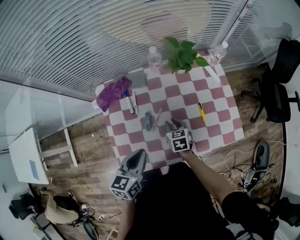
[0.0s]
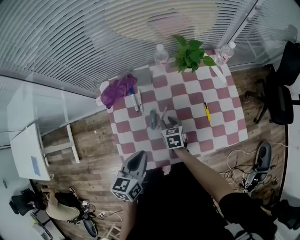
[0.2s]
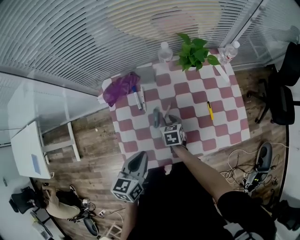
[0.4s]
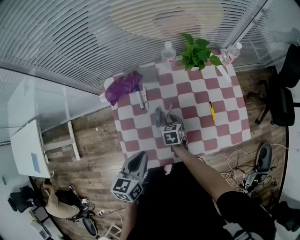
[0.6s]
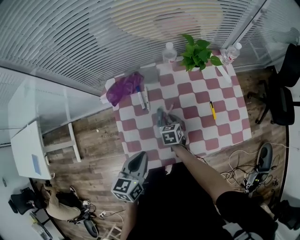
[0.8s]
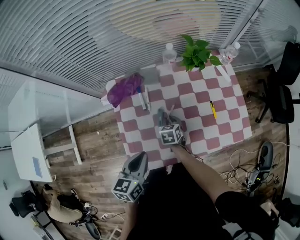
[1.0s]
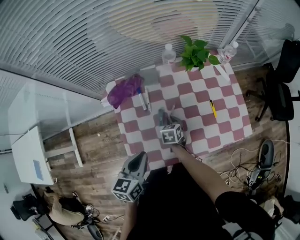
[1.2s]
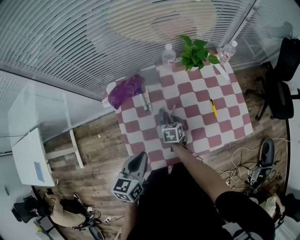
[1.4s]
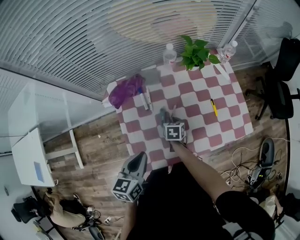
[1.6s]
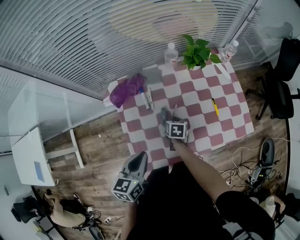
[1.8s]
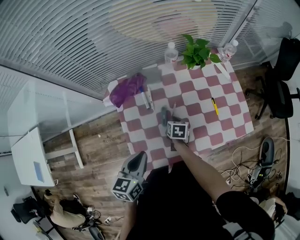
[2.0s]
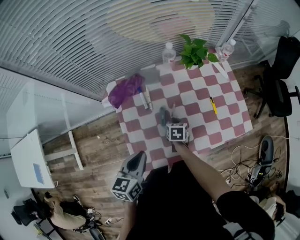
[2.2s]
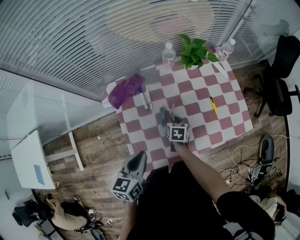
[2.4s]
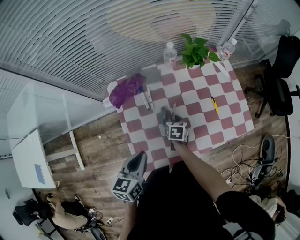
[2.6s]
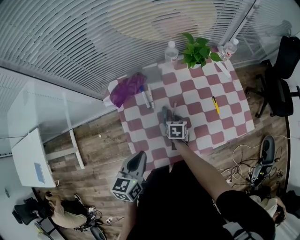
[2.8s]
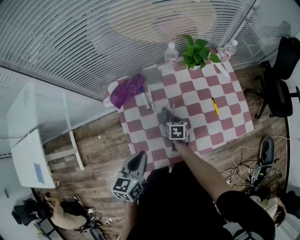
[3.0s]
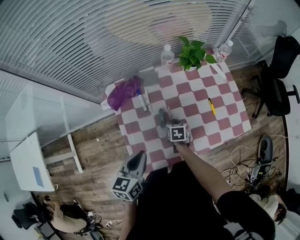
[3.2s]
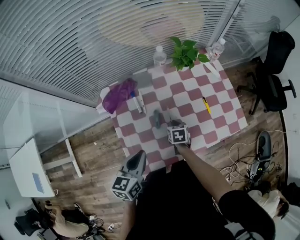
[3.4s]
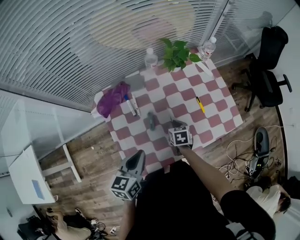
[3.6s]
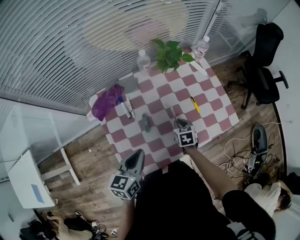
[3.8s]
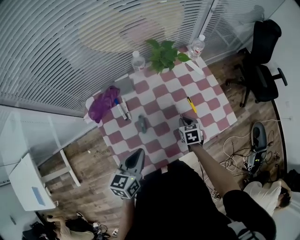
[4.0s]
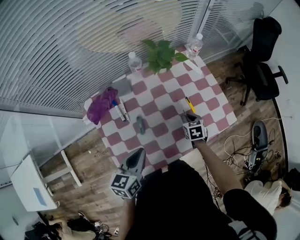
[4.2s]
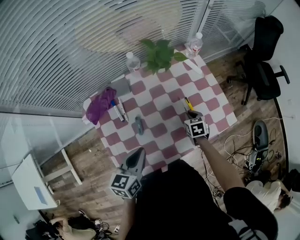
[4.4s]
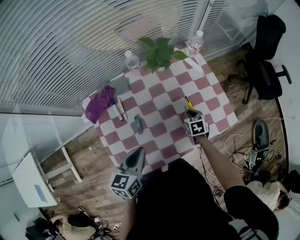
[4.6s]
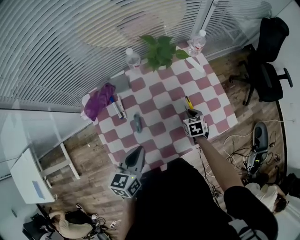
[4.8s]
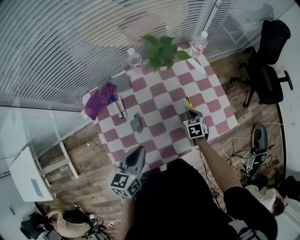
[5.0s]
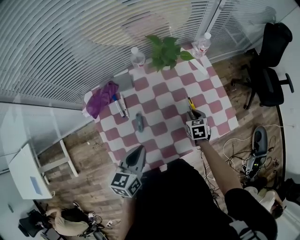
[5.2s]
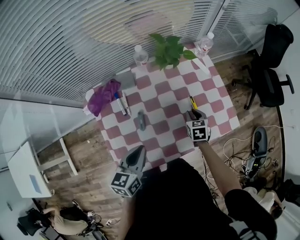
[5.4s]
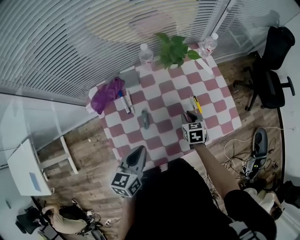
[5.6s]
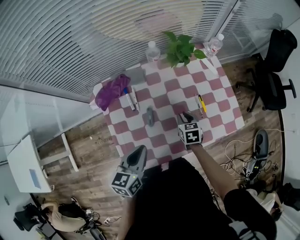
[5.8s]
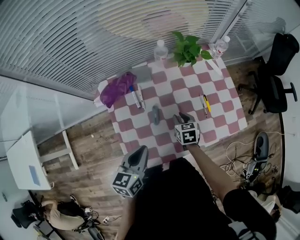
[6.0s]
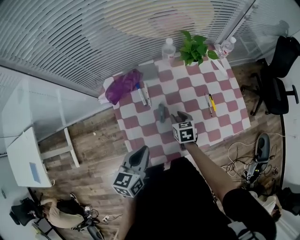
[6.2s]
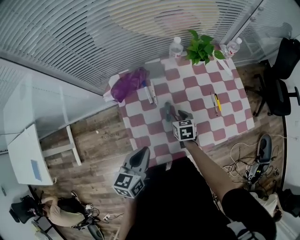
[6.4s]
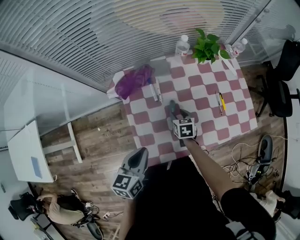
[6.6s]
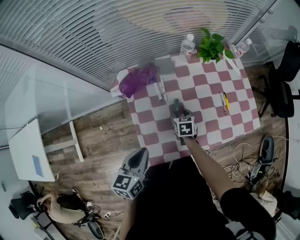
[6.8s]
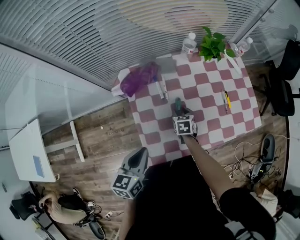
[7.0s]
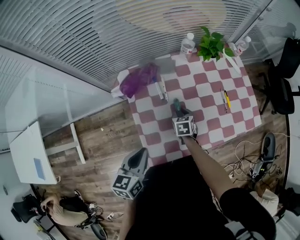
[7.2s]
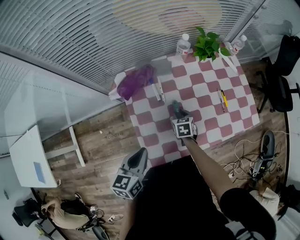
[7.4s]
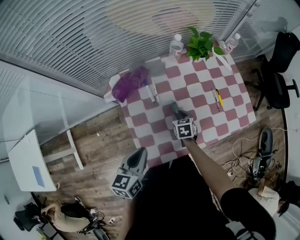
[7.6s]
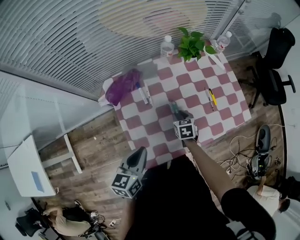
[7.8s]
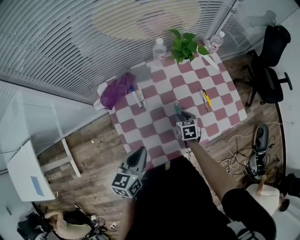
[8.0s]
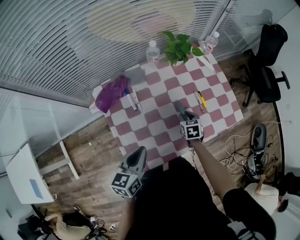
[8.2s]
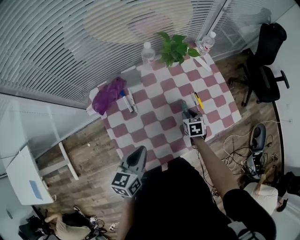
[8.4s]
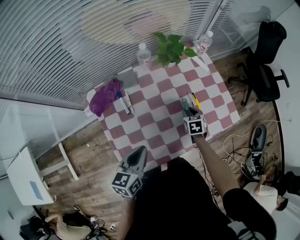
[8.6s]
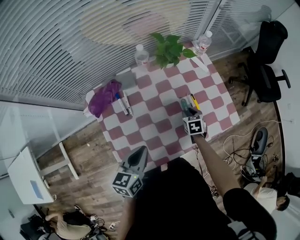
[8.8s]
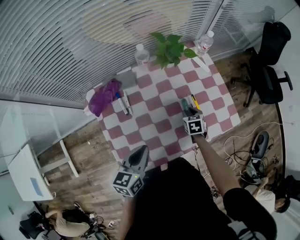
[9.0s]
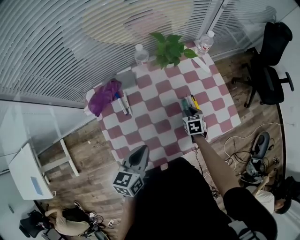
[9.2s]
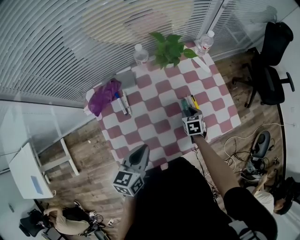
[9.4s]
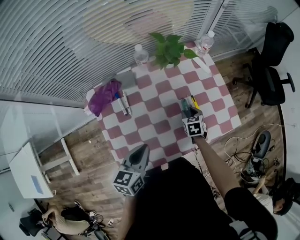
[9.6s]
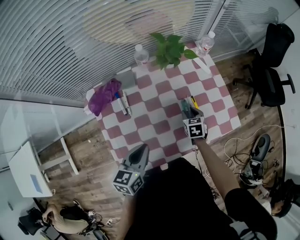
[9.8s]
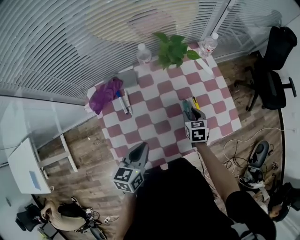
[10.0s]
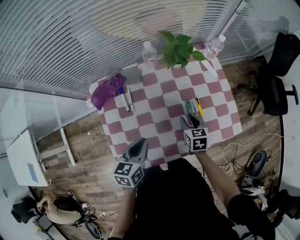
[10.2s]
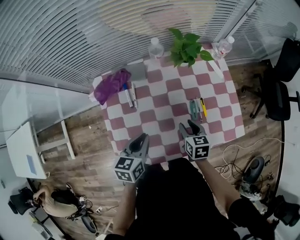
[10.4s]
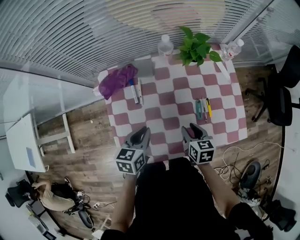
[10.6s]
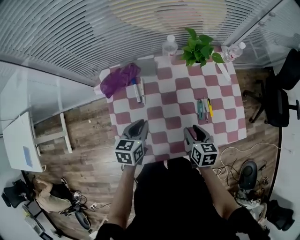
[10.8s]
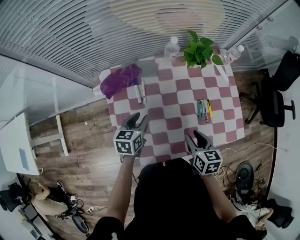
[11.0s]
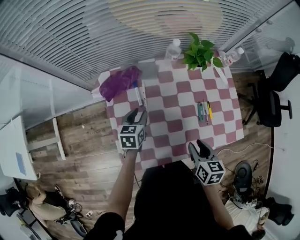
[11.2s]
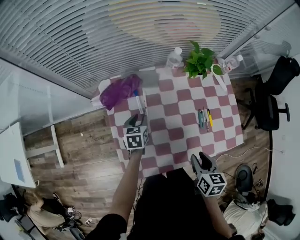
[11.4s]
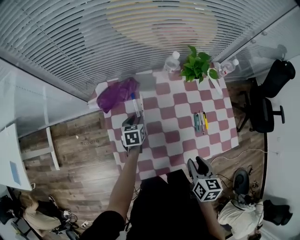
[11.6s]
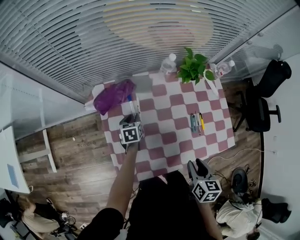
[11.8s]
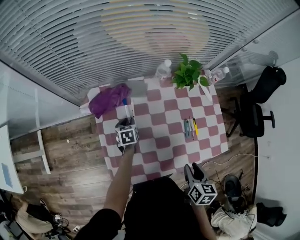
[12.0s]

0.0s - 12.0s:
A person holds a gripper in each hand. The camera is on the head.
0.0s - 1.6s: Both grippers move to the left, roughly 10 cm.
1.6s - 3.0s: There are only small adjustments of the grippers.
3.0s - 4.4s: The left gripper shifts some 15 cm to the right and forward. Meanwhile the right gripper is displaced to the right by some 20 cm.
4.4s - 6.0s: The right gripper is displaced to the left by about 15 cm. Meanwhile the left gripper goes about 5 cm to the left.
6.0s - 7.6s: The grippers both shift to the left by roughly 10 cm.
7.6s - 9.0s: Both grippers move to the right and forward, about 20 cm.
9.0s - 10.4s: The left gripper changes place by some 5 cm; the right gripper travels upward, backward and to the left by some 10 cm.
10.4s - 12.0s: The left gripper goes about 25 cm downward, forward and to the left, and opens up. The right gripper heads backward and upward, covering some 15 cm.

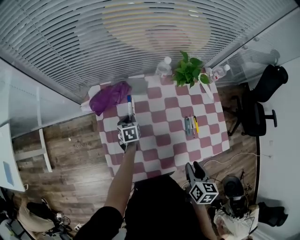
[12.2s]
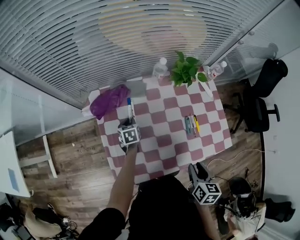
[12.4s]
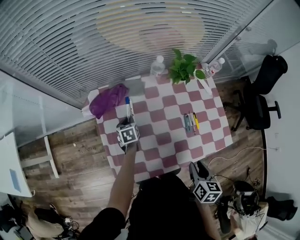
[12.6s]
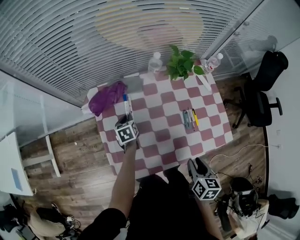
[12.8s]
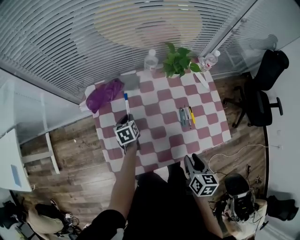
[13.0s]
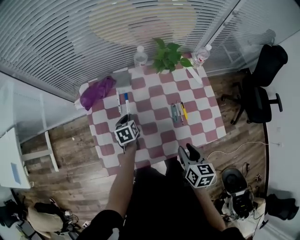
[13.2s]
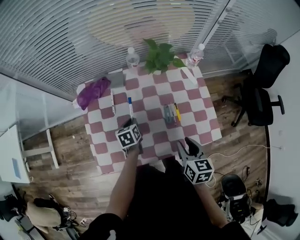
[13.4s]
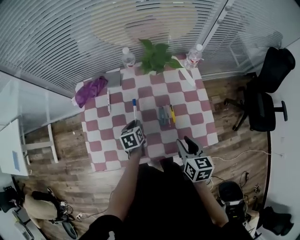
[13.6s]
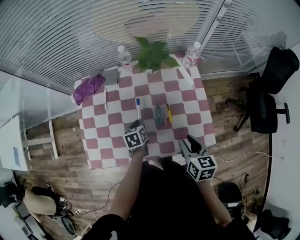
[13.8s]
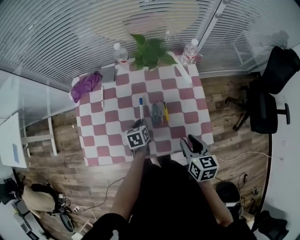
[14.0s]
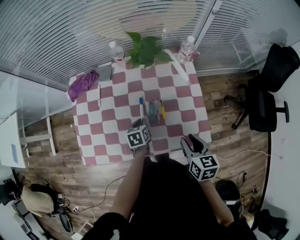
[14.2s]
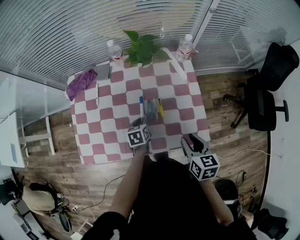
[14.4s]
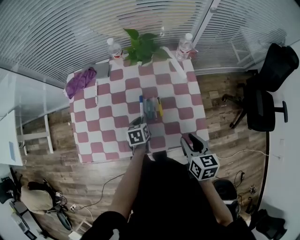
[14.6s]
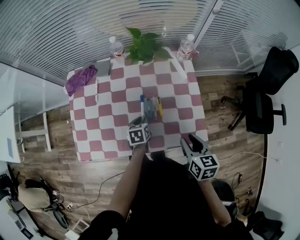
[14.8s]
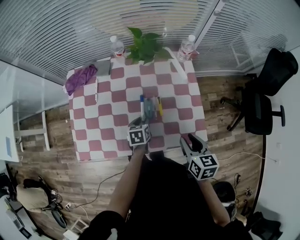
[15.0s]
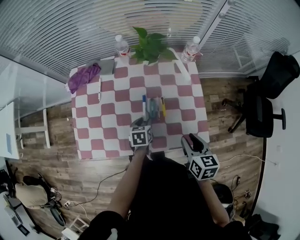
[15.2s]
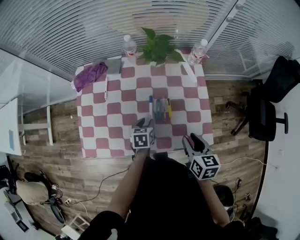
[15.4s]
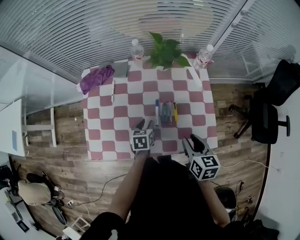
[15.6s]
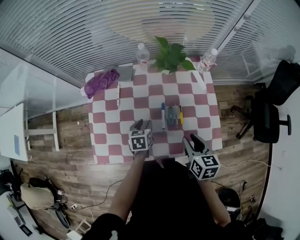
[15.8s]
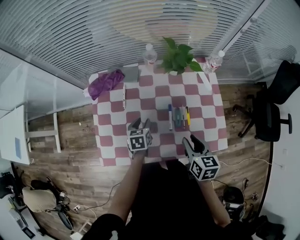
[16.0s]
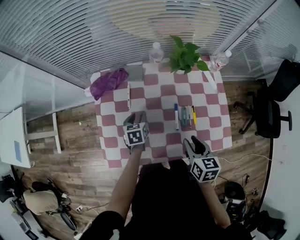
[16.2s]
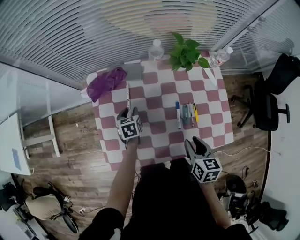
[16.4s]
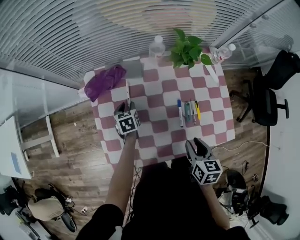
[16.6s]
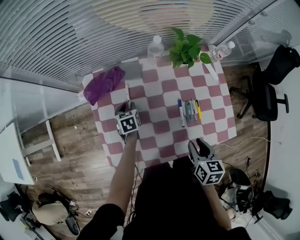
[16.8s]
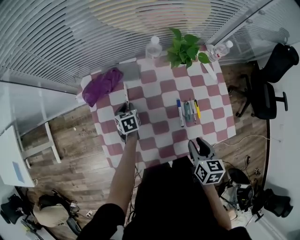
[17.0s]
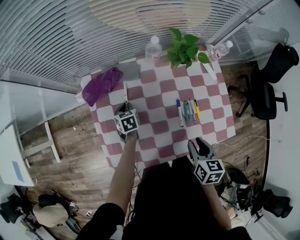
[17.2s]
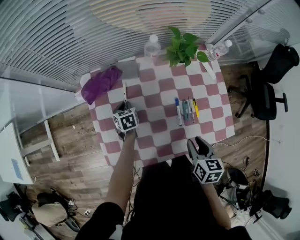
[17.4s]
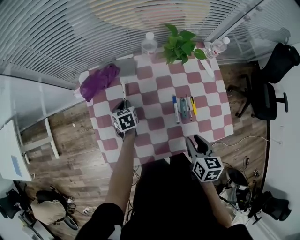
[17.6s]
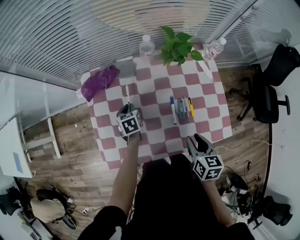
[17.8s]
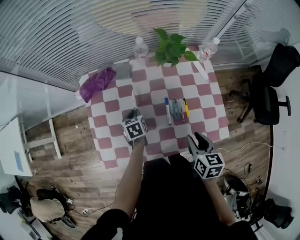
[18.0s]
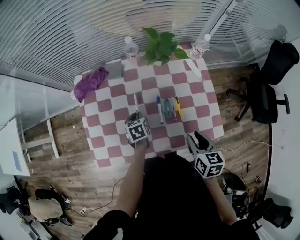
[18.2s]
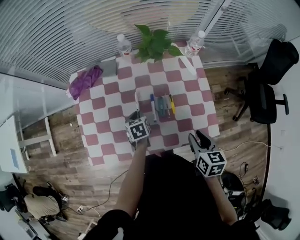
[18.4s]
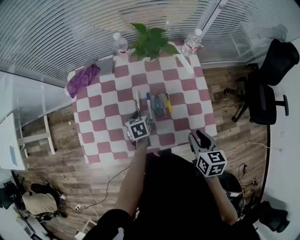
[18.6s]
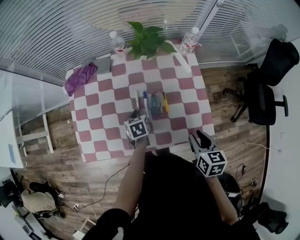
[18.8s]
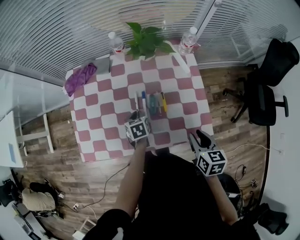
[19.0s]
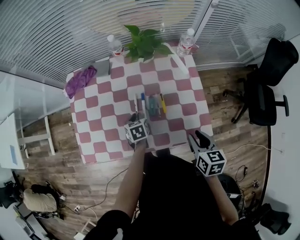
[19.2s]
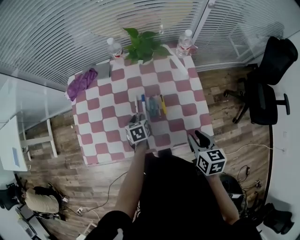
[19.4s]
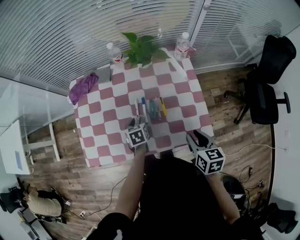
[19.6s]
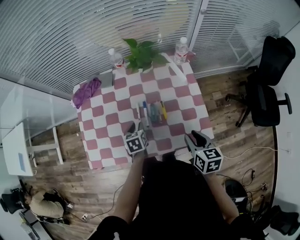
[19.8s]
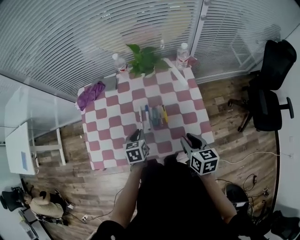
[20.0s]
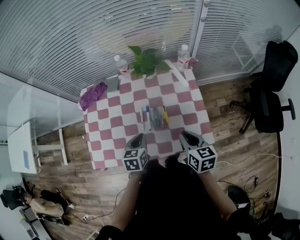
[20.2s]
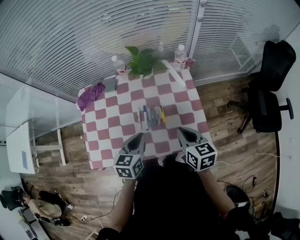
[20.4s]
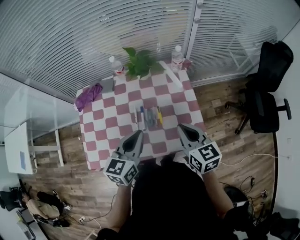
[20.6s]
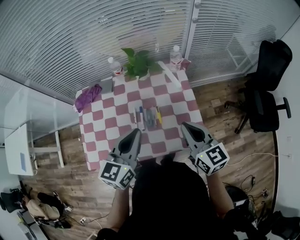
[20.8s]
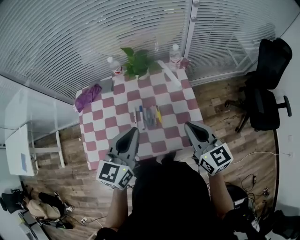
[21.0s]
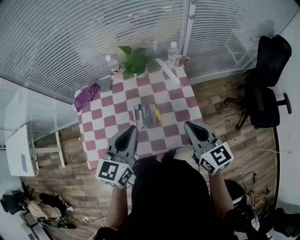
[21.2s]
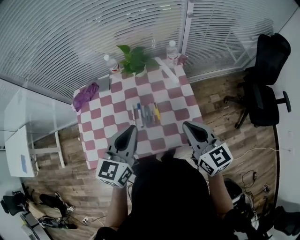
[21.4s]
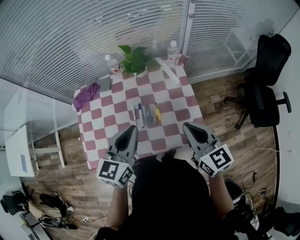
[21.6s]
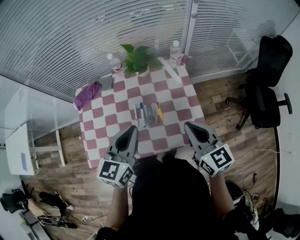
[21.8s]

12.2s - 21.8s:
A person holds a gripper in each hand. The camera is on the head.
12.2s - 13.8s: The left gripper travels to the right and backward by roughly 25 cm, while the right gripper moves to the right, approximately 20 cm, and changes its angle by roughly 20 degrees.
13.8s - 15.4s: The left gripper is displaced to the right by approximately 5 cm.
15.4s - 17.0s: The right gripper goes approximately 15 cm to the left. The left gripper goes some 30 cm to the left and forward.
17.0s - 18.6s: The left gripper is displaced to the right and backward by approximately 25 cm. Meanwhile the right gripper heads to the right, covering approximately 20 cm.
18.6s - 20.2s: The right gripper closes up. Meanwhile the left gripper travels upward and backward by roughly 15 cm.
20.2s - 21.8s: The left gripper moves upward, roughly 20 cm, and changes its angle by some 30 degrees. Meanwhile the right gripper moves upward, approximately 15 cm, and rotates some 30 degrees.

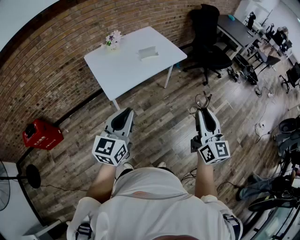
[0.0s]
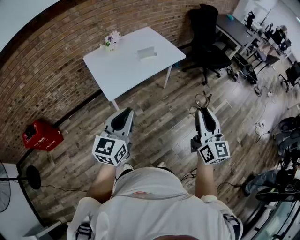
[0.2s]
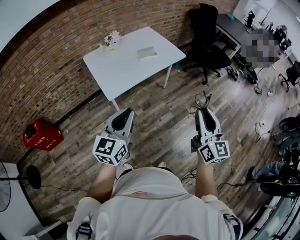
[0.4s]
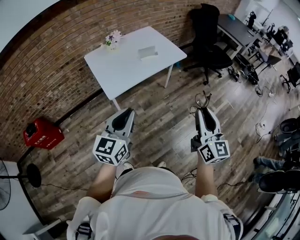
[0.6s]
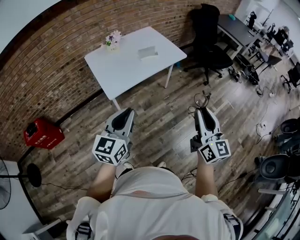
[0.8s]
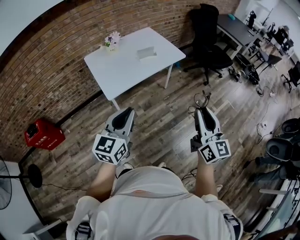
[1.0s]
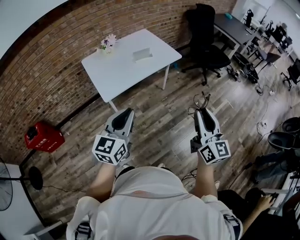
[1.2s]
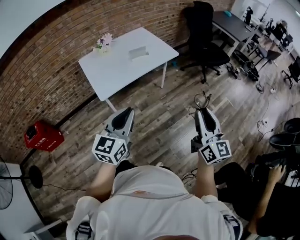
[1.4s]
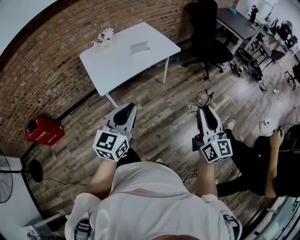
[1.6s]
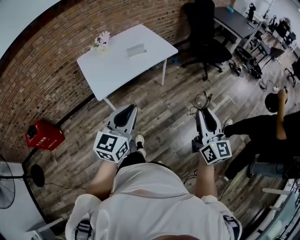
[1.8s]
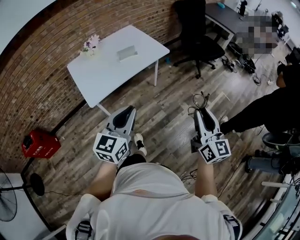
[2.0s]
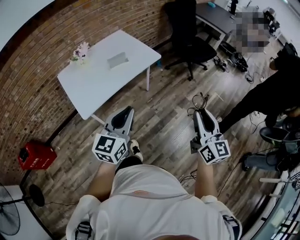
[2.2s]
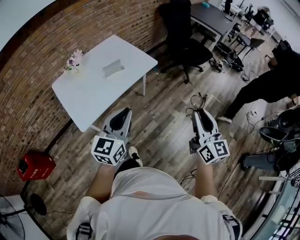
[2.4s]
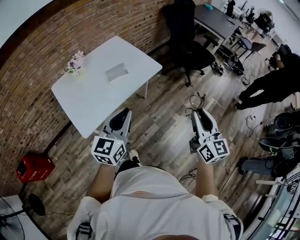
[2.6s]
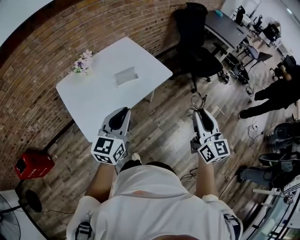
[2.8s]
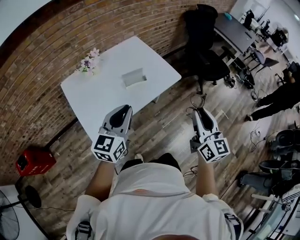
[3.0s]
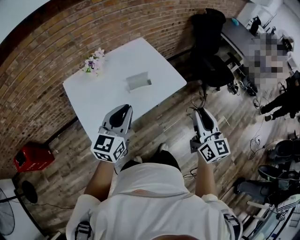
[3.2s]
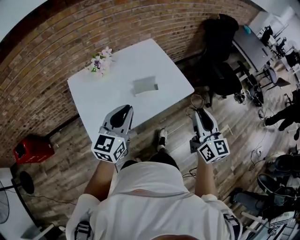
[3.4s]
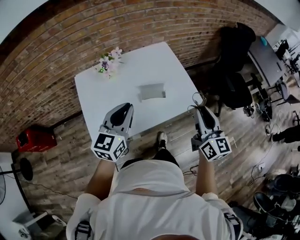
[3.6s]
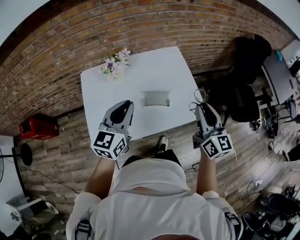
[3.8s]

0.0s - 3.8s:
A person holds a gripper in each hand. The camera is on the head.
0.0s - 1.2s: The left gripper travels to the right by approximately 5 cm.
1.2s - 2.6s: Both grippers travel together forward, some 25 cm.
2.6s - 3.8s: The left gripper changes place by about 30 cm, and turns by about 30 degrees. Meanwhile the right gripper ends up some 40 cm from where it was, and rotates roughly 30 degrees.
